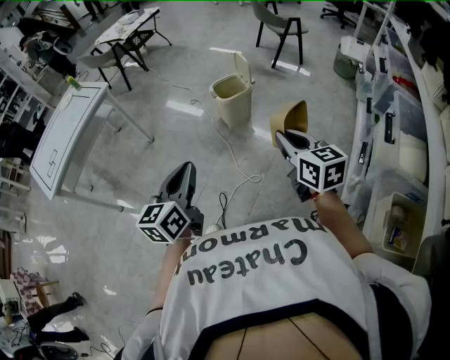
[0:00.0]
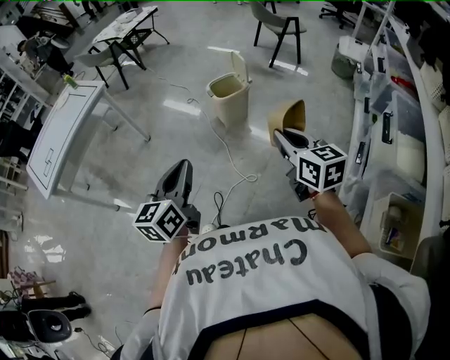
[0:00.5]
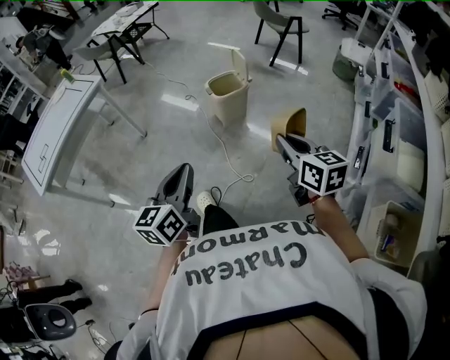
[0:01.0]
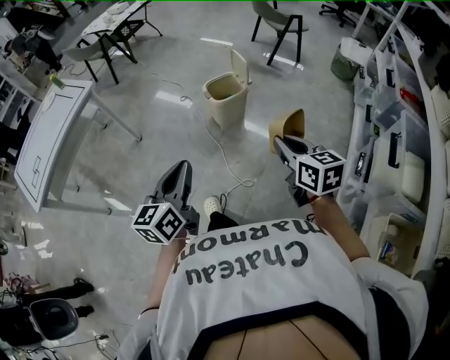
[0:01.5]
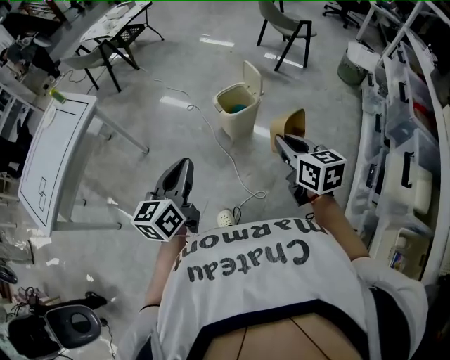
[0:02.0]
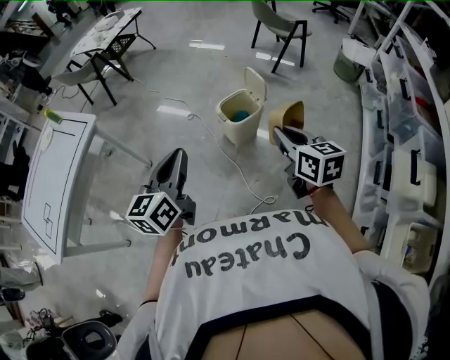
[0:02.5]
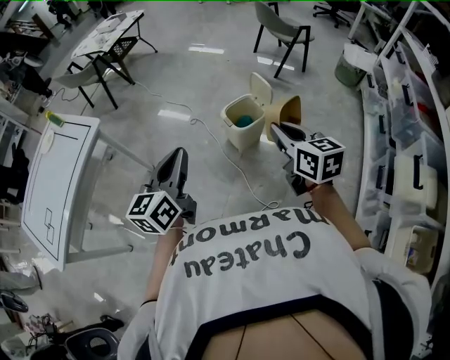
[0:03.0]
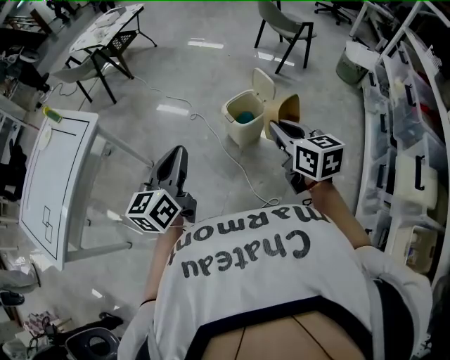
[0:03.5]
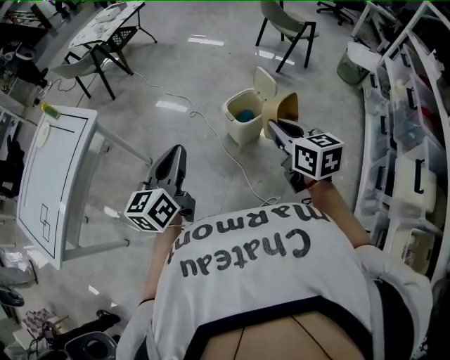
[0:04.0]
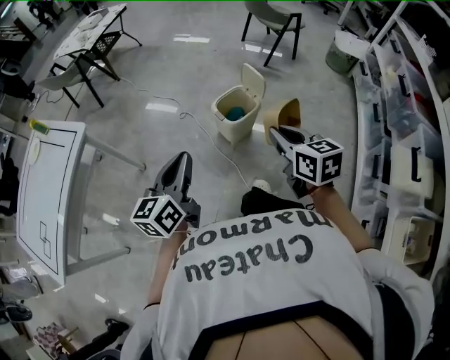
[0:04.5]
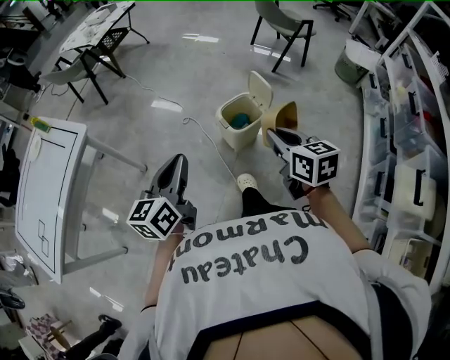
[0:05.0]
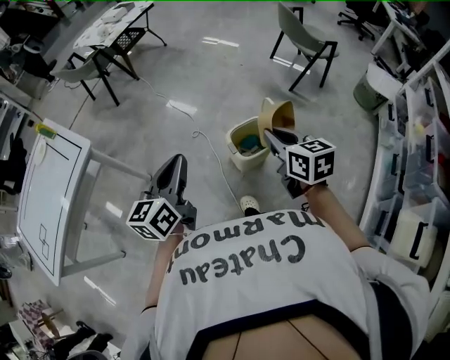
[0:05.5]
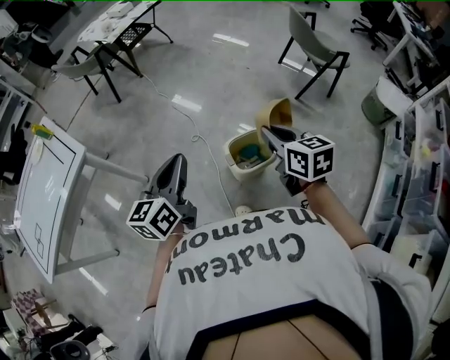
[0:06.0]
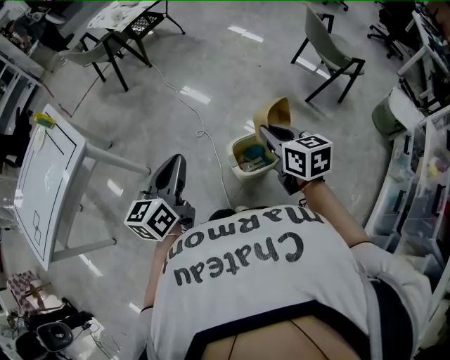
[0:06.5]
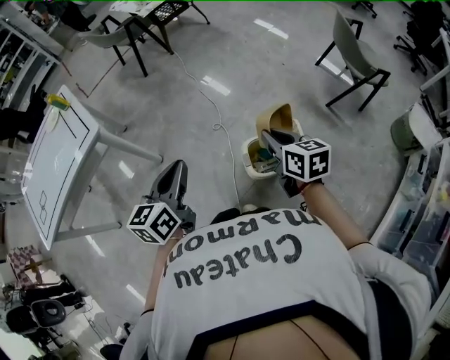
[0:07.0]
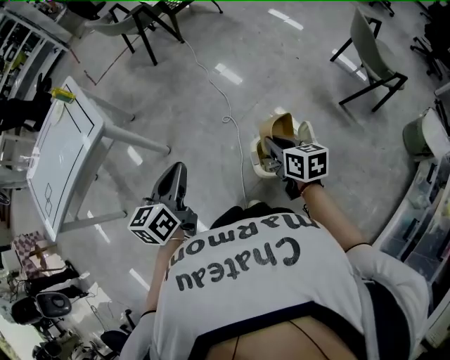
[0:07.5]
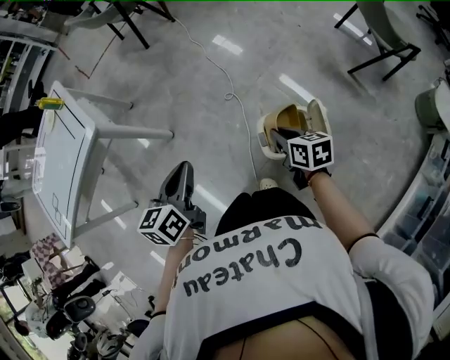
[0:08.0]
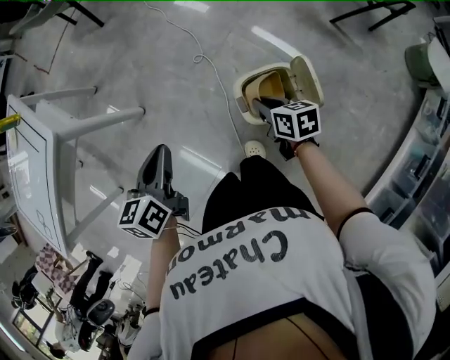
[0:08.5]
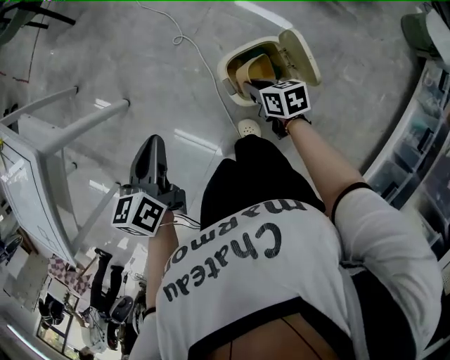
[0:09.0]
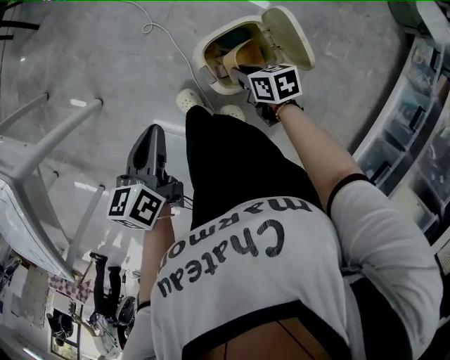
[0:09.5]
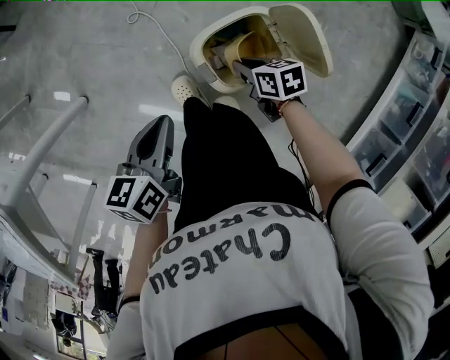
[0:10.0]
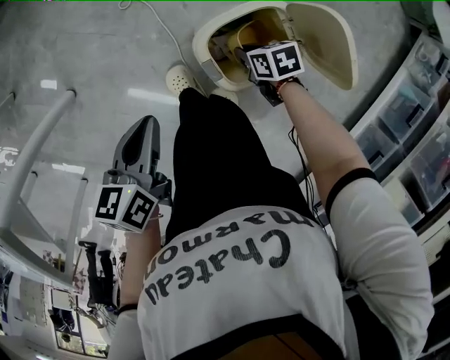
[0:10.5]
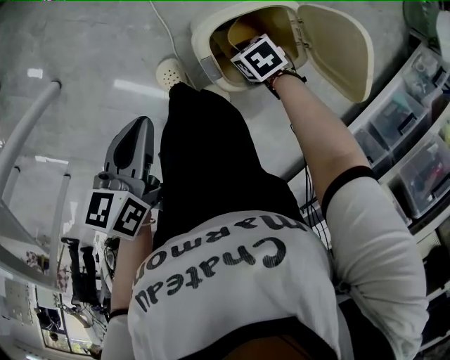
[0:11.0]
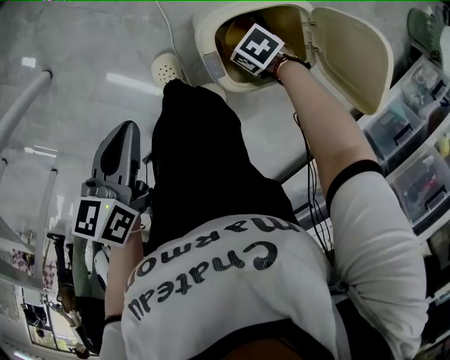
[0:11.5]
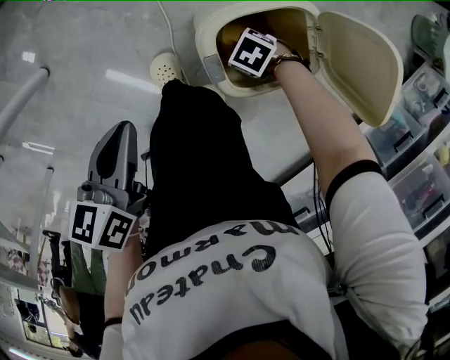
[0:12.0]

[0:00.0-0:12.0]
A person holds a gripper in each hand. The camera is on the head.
0.0 to 2.0 s: The two grippers go some 20 cm forward.
2.0 to 4.0 s: Both grippers move forward and to the left, roughly 15 cm.
4.0 to 6.0 s: The two grippers go roughly 25 cm forward.
6.0 to 8.0 s: The right gripper moves downward and forward, roughly 20 cm, and changes its angle by roughly 30 degrees. The left gripper heads downward, forward and to the left, covering about 10 cm, and swivels approximately 20 degrees.
8.0 to 10.0 s: Both grippers travel together downward, roughly 25 cm. The left gripper turns by some 30 degrees; the right gripper rotates approximately 20 degrees.
10.0 to 12.0 s: The right gripper shifts about 20 cm downward, and swivels approximately 70 degrees; the left gripper travels downward by about 10 cm.

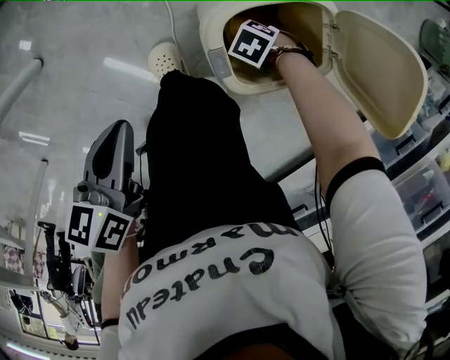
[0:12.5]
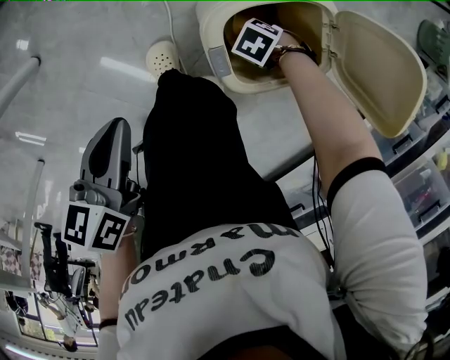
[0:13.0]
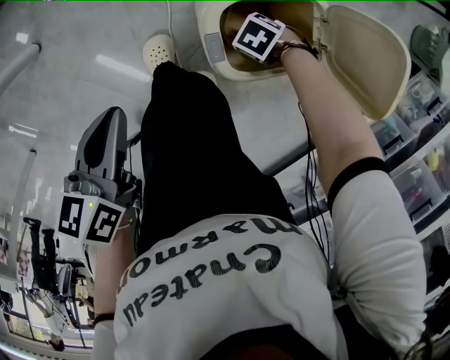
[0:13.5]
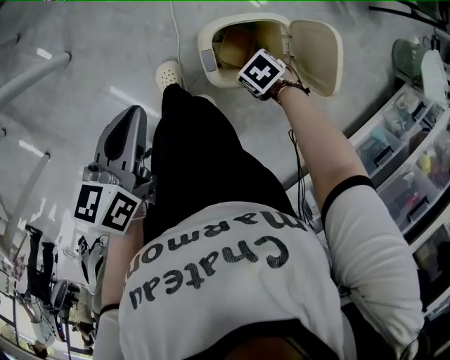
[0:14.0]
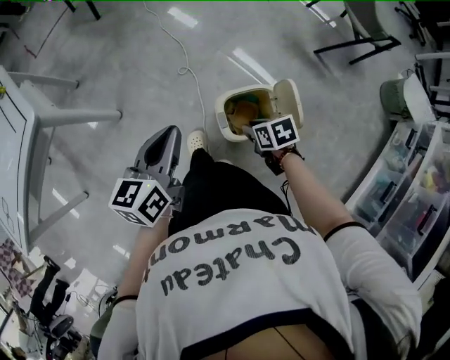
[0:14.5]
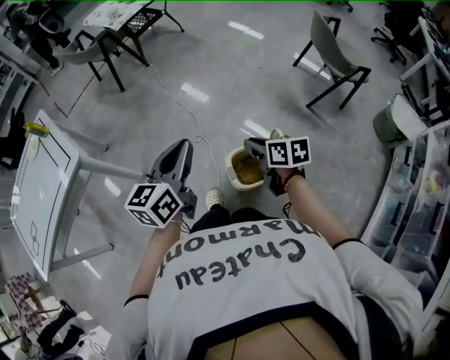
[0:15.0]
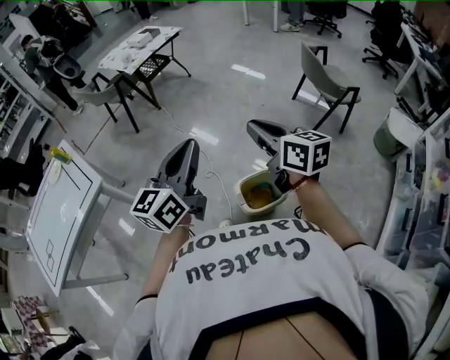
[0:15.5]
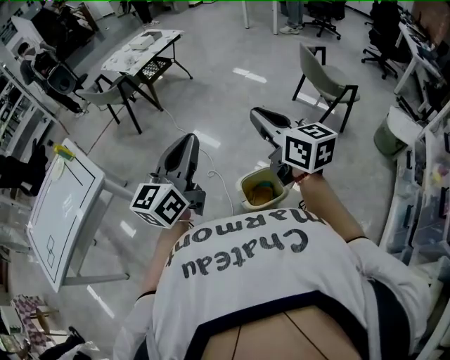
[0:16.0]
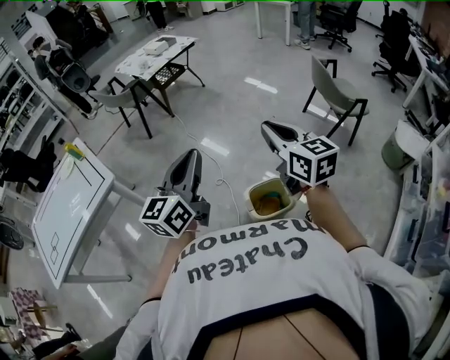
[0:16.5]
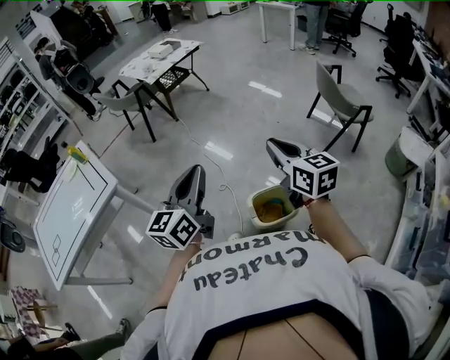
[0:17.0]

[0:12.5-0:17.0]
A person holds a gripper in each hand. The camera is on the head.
12.5 to 14.5 s: Both grippers travel together upward, approximately 35 cm. The left gripper rotates some 30 degrees, while the right gripper rotates about 60 degrees.
14.5 to 17.0 s: The right gripper heads upward, covering about 40 cm, and angles its fingers upward, by approximately 50 degrees; the left gripper travels upward by approximately 25 cm, and turns by approximately 30 degrees.

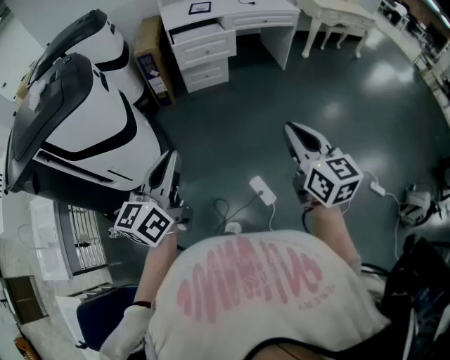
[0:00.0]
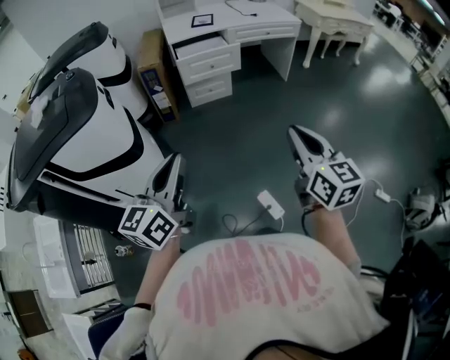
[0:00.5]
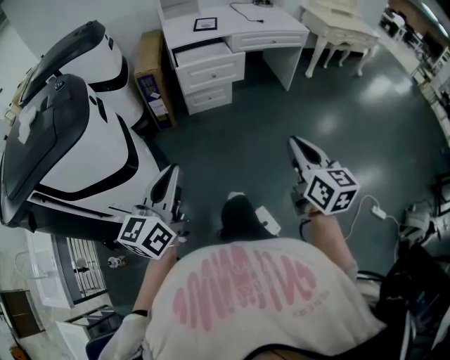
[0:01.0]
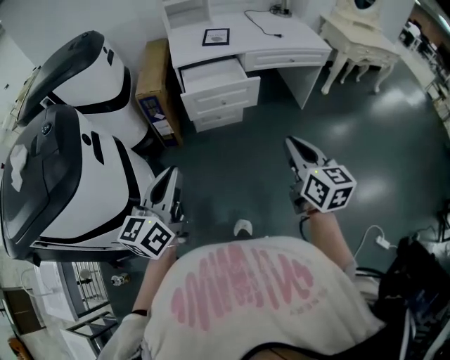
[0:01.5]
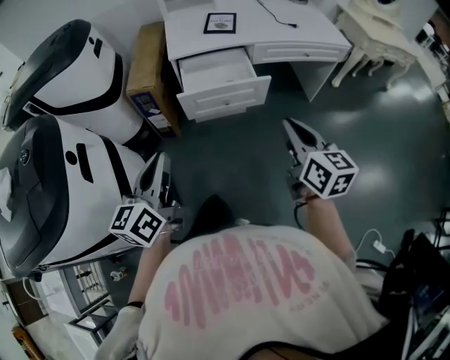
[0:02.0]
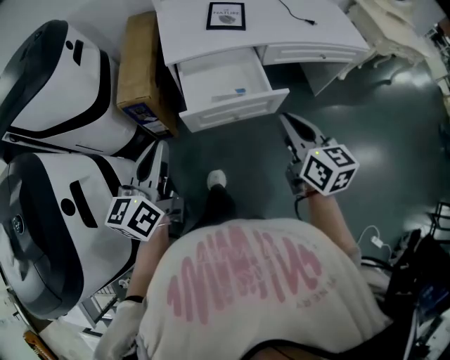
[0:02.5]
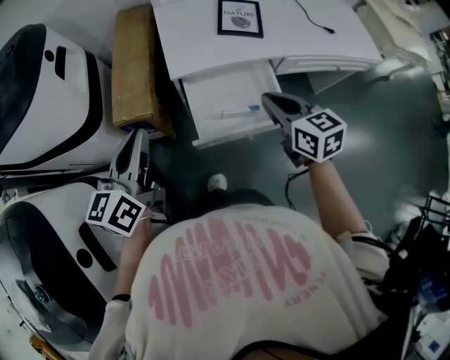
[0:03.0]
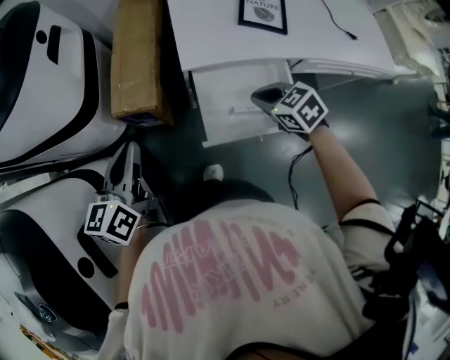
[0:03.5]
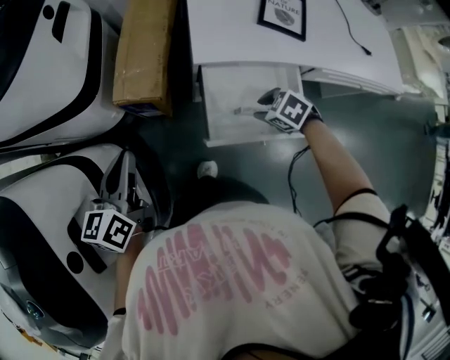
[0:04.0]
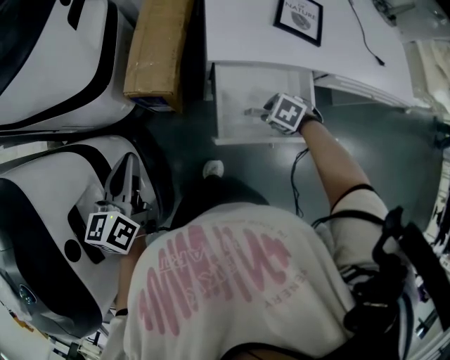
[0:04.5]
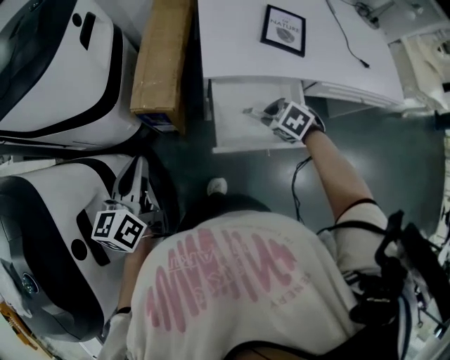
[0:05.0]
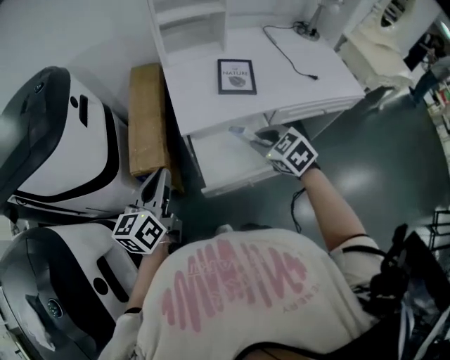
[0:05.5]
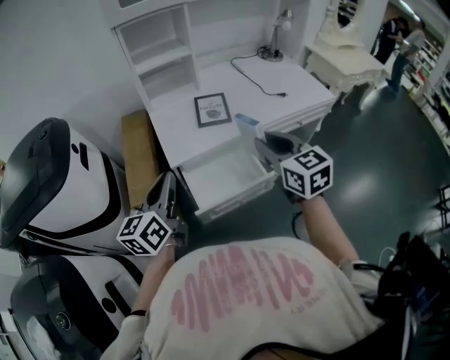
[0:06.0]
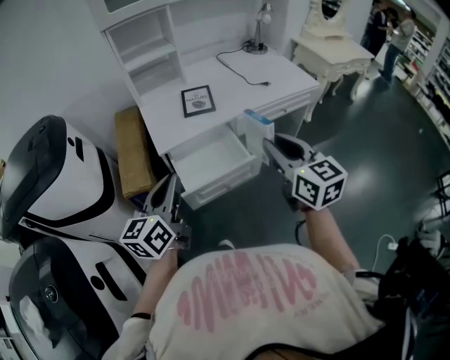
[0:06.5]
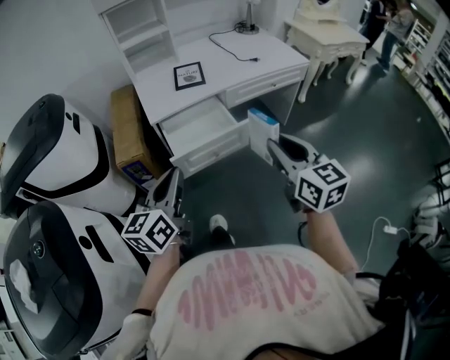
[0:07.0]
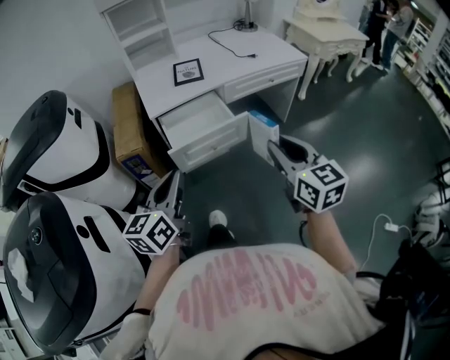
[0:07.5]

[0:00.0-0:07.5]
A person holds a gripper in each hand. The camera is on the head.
0.0 to 2.0 s: Both grippers are carried forward, about 50 cm.
2.0 to 4.0 s: The right gripper moves approximately 50 cm, points its fingers about 60 degrees further downward, and opens up. The left gripper moves approximately 40 cm, and turns by some 20 degrees.
4.0 to 5.5 s: The left gripper moves about 15 cm; the right gripper shifts about 20 cm upward, and swivels about 40 degrees.
5.5 to 7.5 s: The right gripper moves backward, to the right and upward, about 40 cm, and tilts its fingers roughly 40 degrees upward, while the left gripper moves backward and to the right, roughly 30 cm.

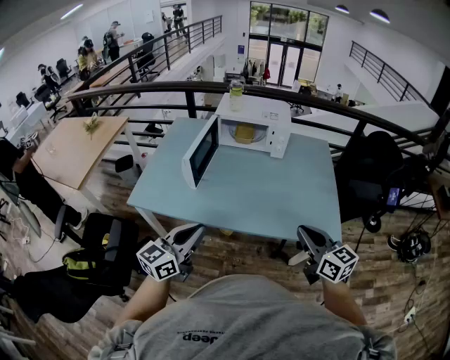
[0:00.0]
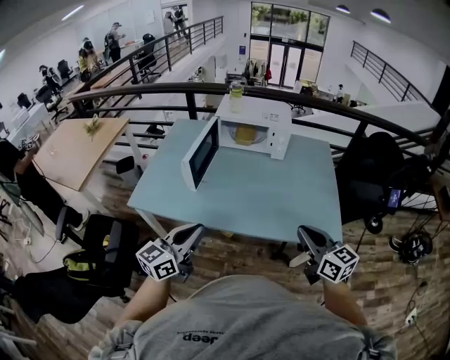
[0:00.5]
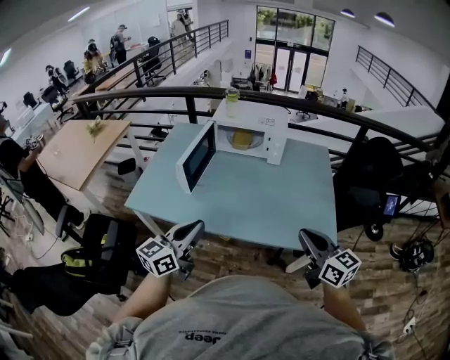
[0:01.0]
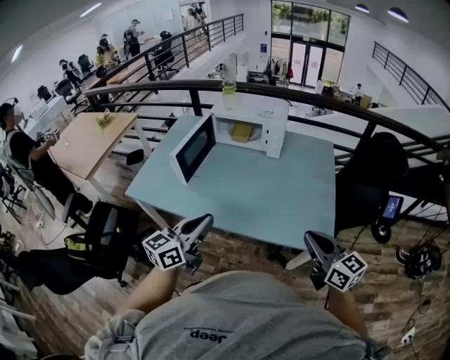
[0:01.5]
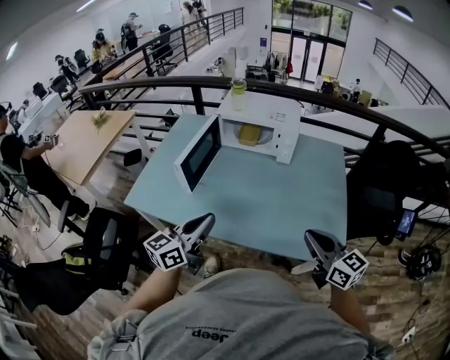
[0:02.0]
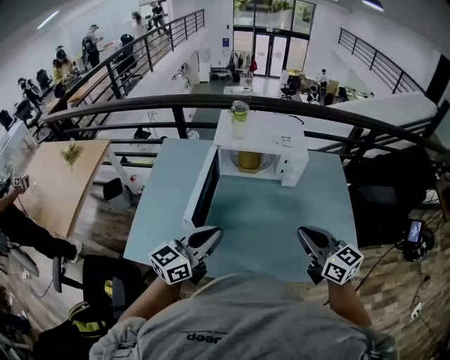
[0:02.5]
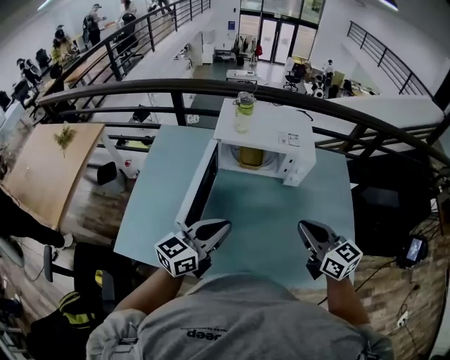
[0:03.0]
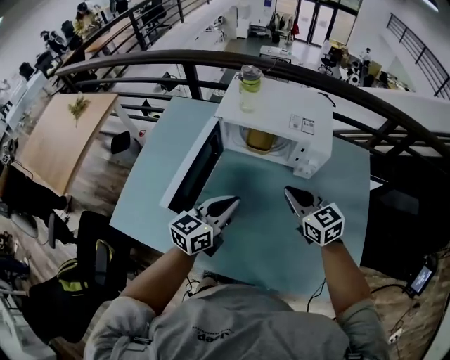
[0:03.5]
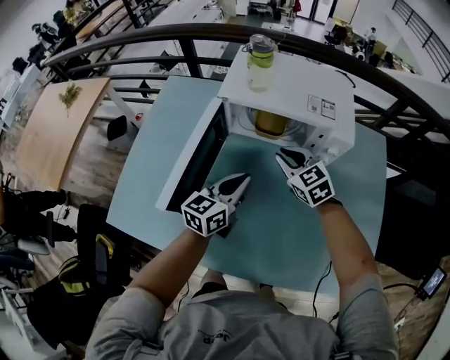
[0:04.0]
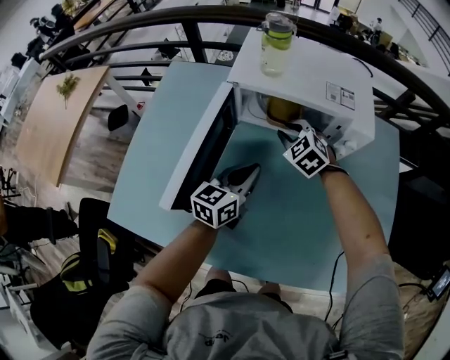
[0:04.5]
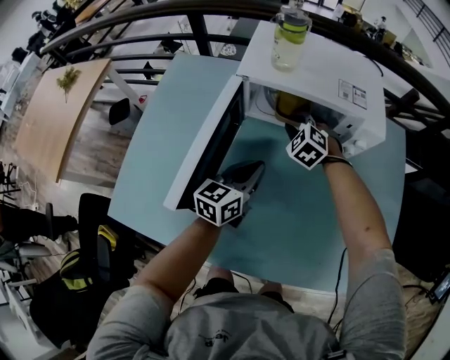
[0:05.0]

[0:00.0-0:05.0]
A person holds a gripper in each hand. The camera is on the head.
0.0 to 2.5 s: The grippers both shift forward by roughly 25 cm.
2.5 to 5.0 s: The grippers both shift forward and downward by about 40 cm. The left gripper swivels roughly 20 degrees; the right gripper angles its fingers downward, by about 40 degrees.
